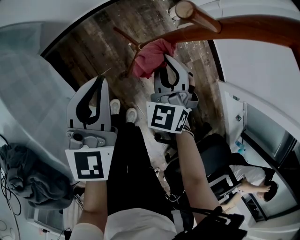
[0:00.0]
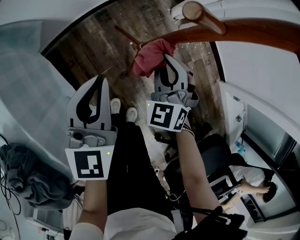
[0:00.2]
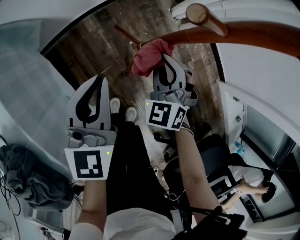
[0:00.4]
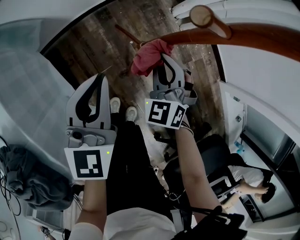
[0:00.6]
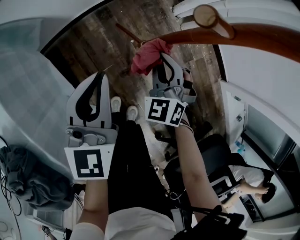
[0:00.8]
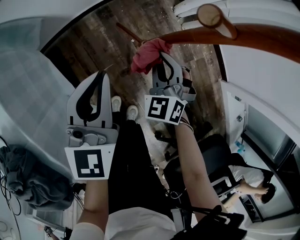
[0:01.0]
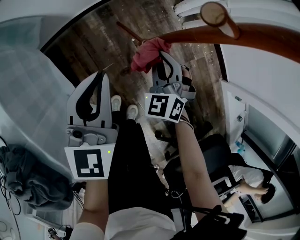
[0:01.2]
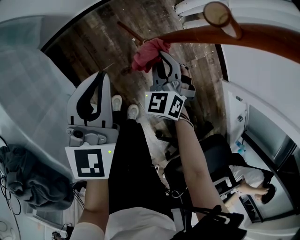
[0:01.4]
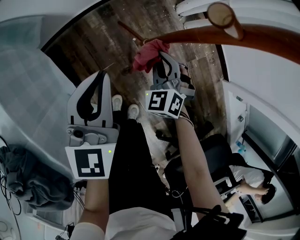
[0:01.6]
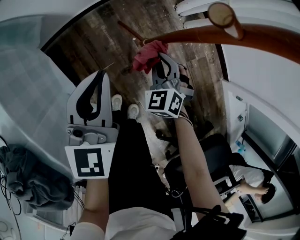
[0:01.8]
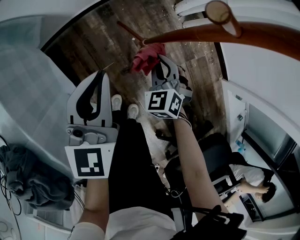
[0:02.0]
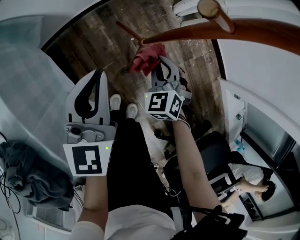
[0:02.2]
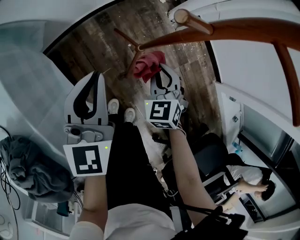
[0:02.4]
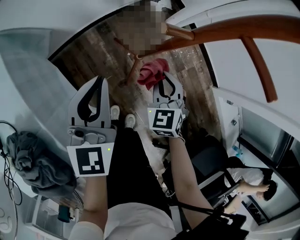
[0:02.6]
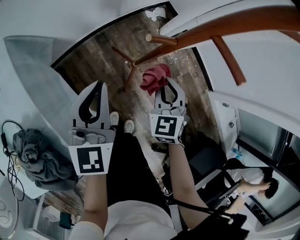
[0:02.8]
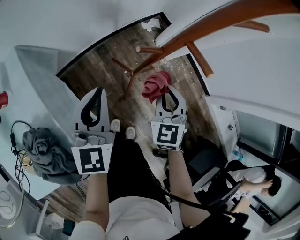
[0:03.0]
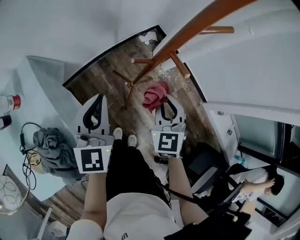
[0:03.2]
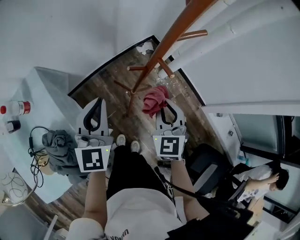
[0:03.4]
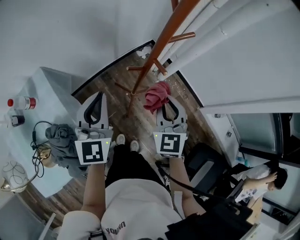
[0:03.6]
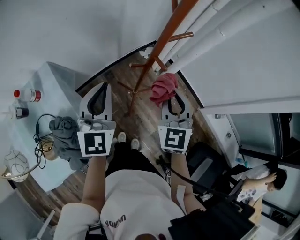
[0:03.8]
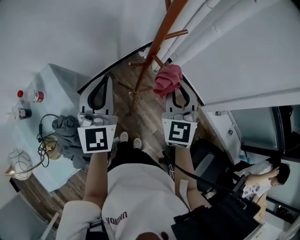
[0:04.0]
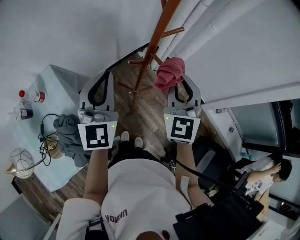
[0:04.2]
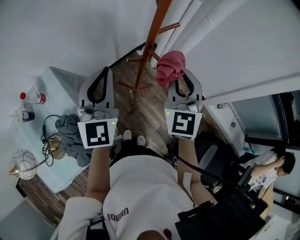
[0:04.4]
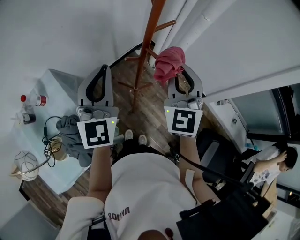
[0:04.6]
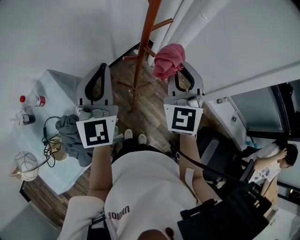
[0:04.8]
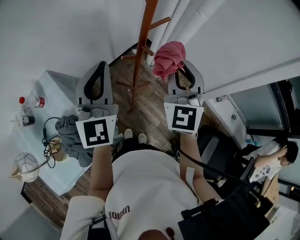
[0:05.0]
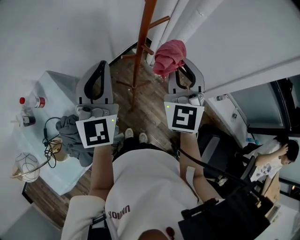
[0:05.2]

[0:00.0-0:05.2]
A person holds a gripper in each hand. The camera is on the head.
0.0 to 1.8 s: The right gripper moves downward, approximately 10 cm.
1.8 to 3.4 s: The left gripper travels upward by roughly 20 cm. Meanwhile the right gripper goes roughly 30 cm upward, and rotates approximately 30 degrees.
3.4 to 5.2 s: Both grippers move upward, about 20 cm. The right gripper turns by about 30 degrees.

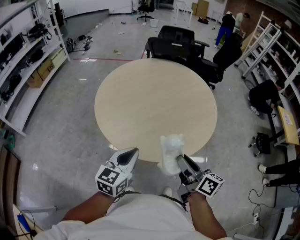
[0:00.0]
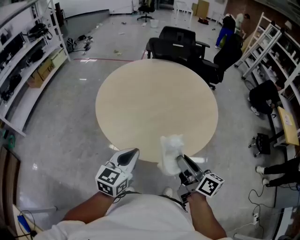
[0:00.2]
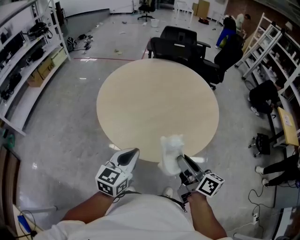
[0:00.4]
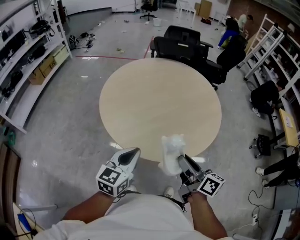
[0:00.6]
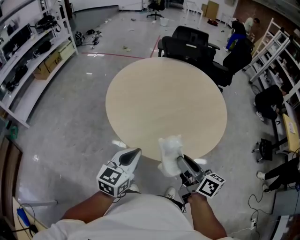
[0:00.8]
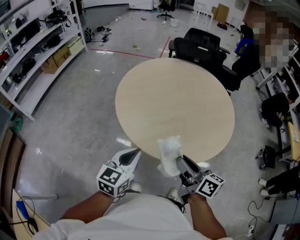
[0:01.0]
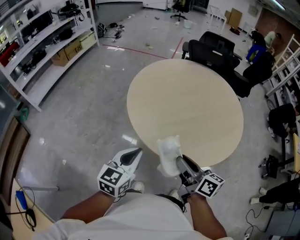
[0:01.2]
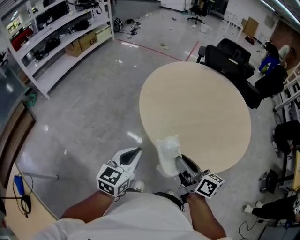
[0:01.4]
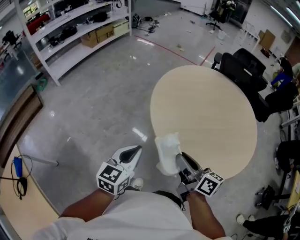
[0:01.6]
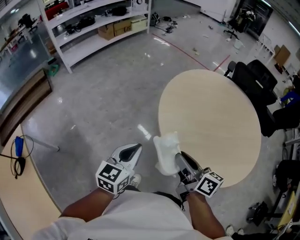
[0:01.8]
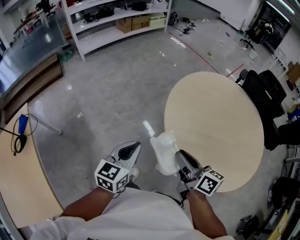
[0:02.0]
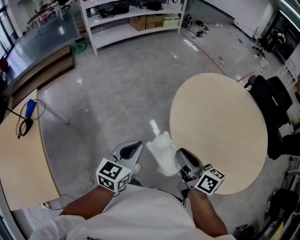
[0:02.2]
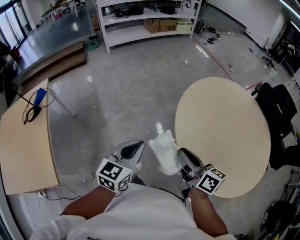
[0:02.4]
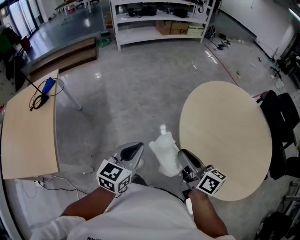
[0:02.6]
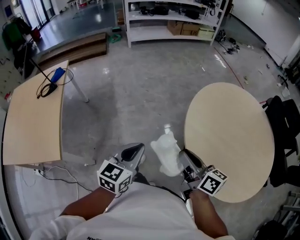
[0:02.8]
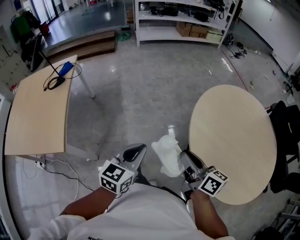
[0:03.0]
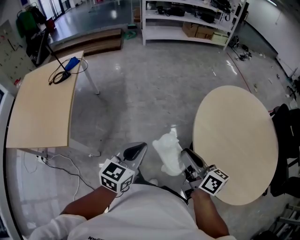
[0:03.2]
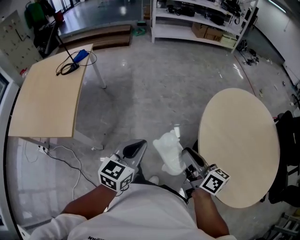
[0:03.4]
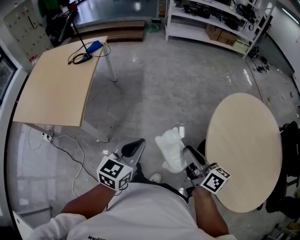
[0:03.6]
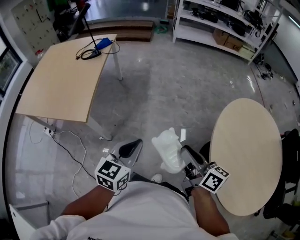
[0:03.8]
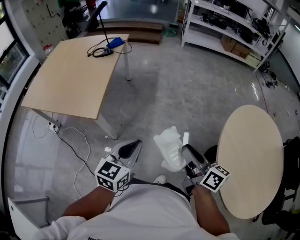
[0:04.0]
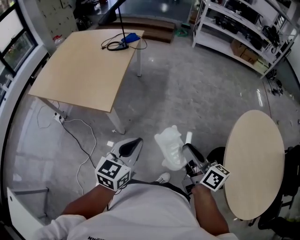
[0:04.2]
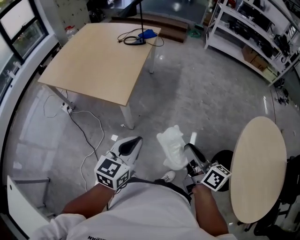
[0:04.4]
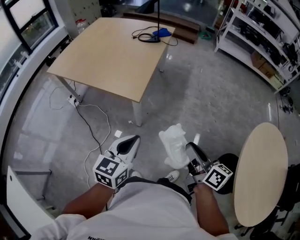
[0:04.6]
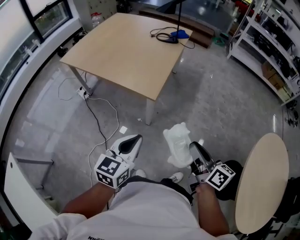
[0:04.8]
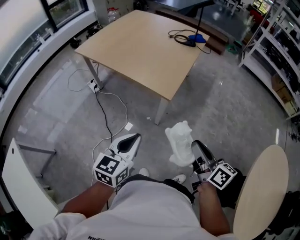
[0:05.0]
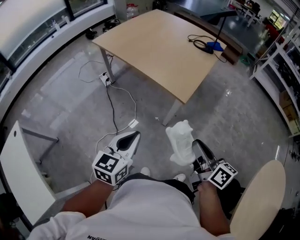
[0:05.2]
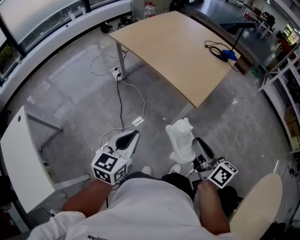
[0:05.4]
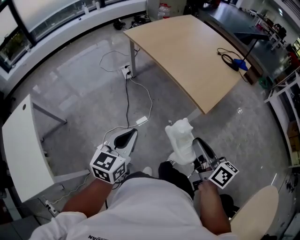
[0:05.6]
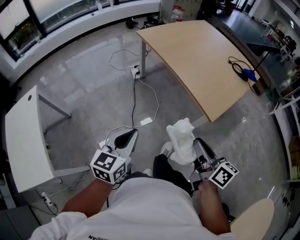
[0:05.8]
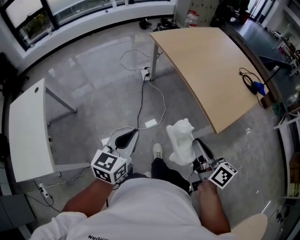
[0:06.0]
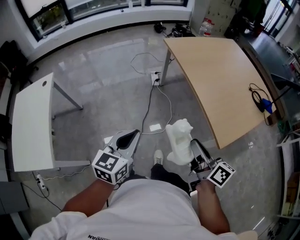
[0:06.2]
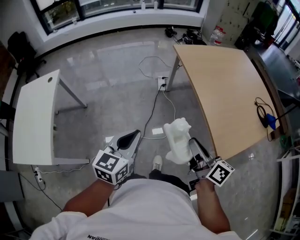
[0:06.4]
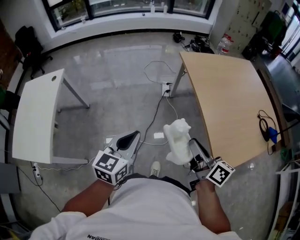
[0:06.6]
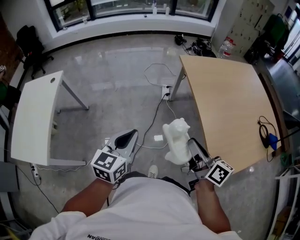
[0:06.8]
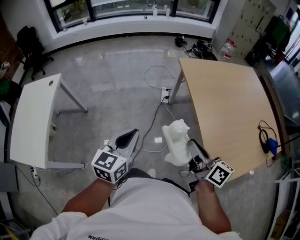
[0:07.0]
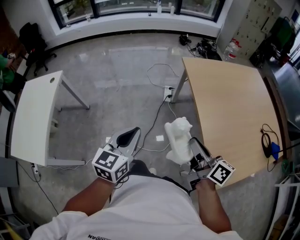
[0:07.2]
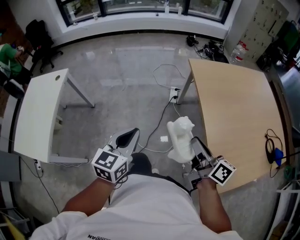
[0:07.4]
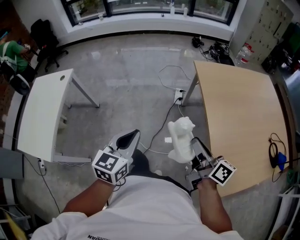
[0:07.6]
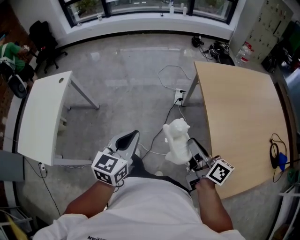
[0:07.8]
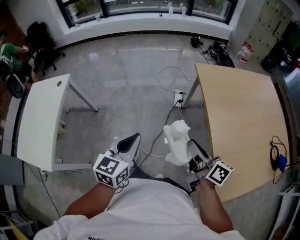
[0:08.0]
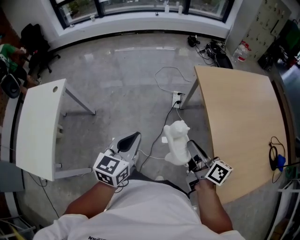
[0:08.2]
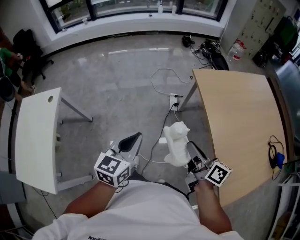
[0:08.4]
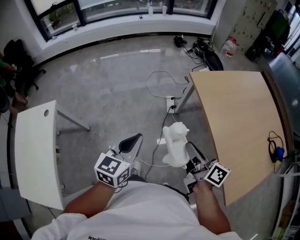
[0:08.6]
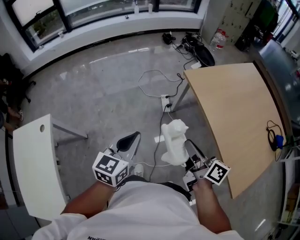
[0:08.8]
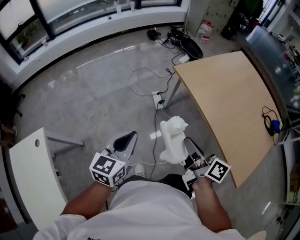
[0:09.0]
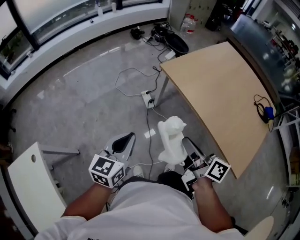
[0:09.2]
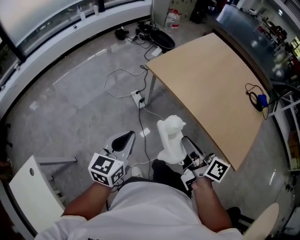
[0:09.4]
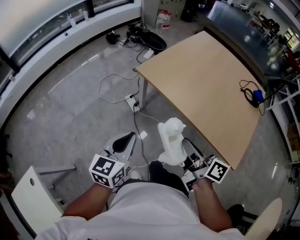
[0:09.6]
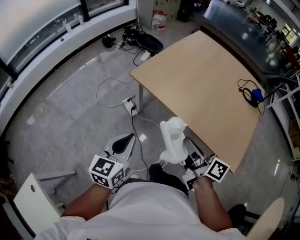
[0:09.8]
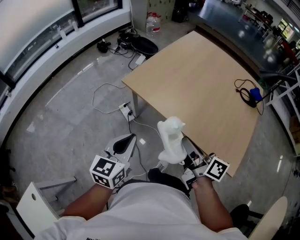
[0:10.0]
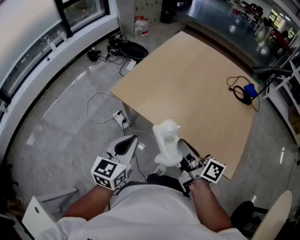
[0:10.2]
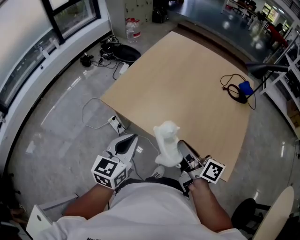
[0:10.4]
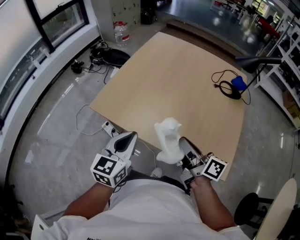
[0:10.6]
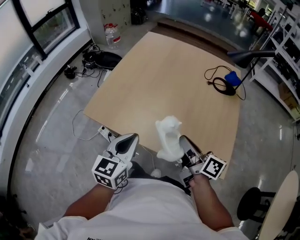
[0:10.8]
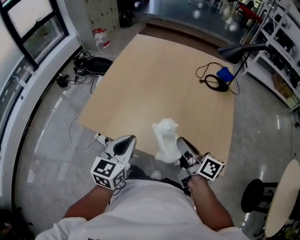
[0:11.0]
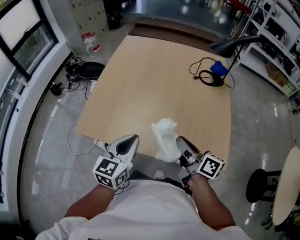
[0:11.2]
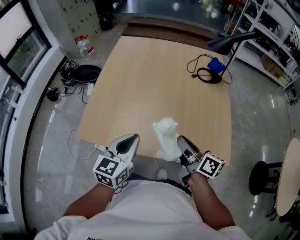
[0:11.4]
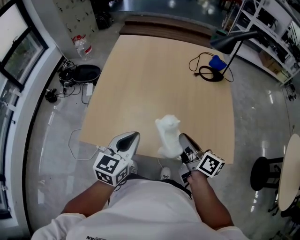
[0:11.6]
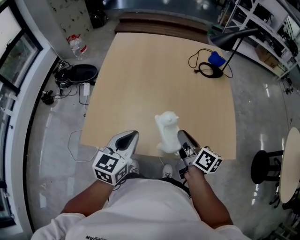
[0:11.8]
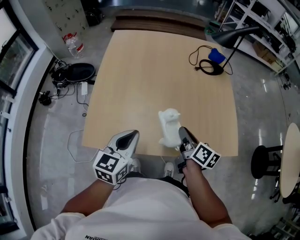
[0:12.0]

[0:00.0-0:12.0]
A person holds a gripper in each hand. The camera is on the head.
0.0 to 1.6 s: The right gripper moves about 20 cm, and turns by approximately 30 degrees. Meanwhile the left gripper shifts by roughly 15 cm, and rotates some 30 degrees.
1.6 to 3.0 s: The right gripper changes place by about 10 cm, and changes its angle by about 40 degrees, while the left gripper changes place by roughly 20 cm, and swivels roughly 40 degrees.
3.0 to 4.4 s: The left gripper moves about 30 cm, and turns by approximately 30 degrees. Meanwhile the right gripper shifts by about 25 cm, and rotates some 30 degrees.
4.4 to 6.0 s: The right gripper ends up some 35 cm from where it was, and turns by approximately 50 degrees, while the left gripper shifts by roughly 35 cm, and rotates some 50 degrees.
6.0 to 7.6 s: The right gripper shifts by some 25 cm, and turns by approximately 30 degrees. Meanwhile the left gripper changes place by approximately 15 cm, and rotates about 20 degrees.
7.6 to 9.0 s: The right gripper goes roughly 15 cm forward and to the left, and turns by some 20 degrees; the left gripper heads forward, covering some 20 cm, and rotates approximately 20 degrees.
9.0 to 10.4 s: The left gripper changes place by some 30 cm, and swivels about 30 degrees; the right gripper ends up about 25 cm from where it was, and swivels approximately 30 degrees.
10.4 to 12.0 s: The left gripper moves some 15 cm, and rotates roughly 30 degrees, while the right gripper changes place by some 15 cm, and changes its angle by about 40 degrees.

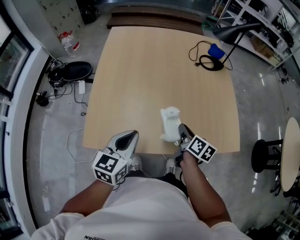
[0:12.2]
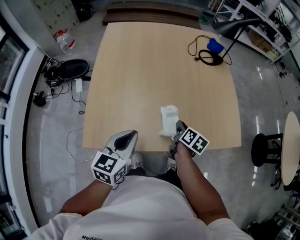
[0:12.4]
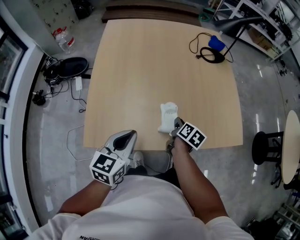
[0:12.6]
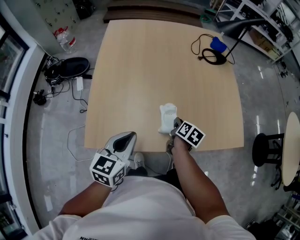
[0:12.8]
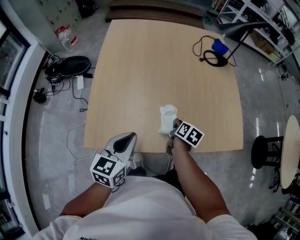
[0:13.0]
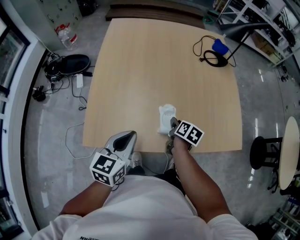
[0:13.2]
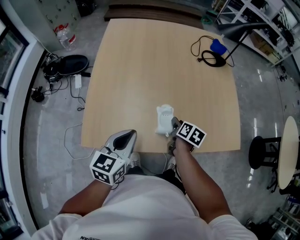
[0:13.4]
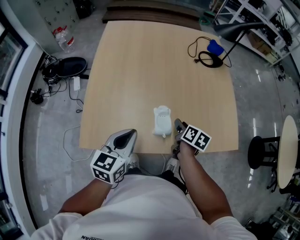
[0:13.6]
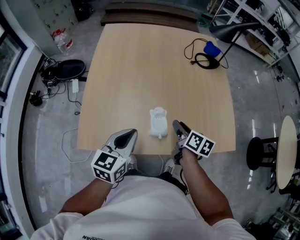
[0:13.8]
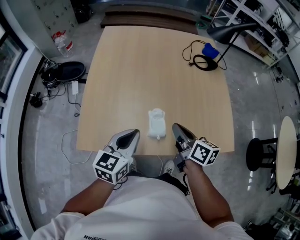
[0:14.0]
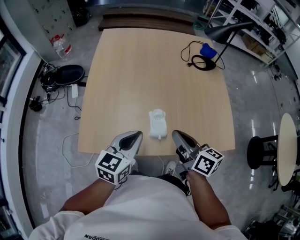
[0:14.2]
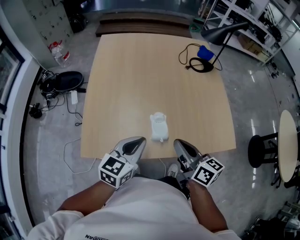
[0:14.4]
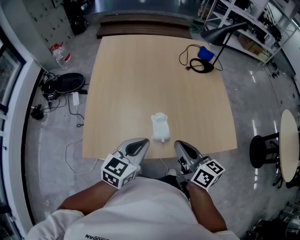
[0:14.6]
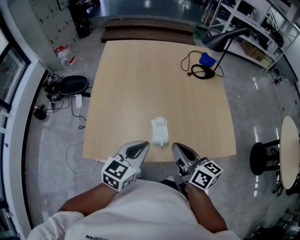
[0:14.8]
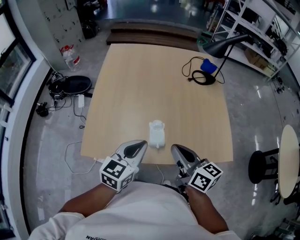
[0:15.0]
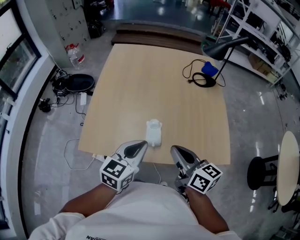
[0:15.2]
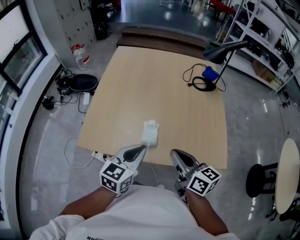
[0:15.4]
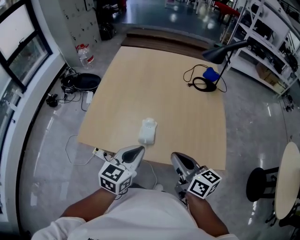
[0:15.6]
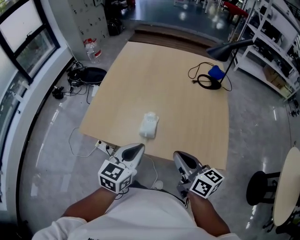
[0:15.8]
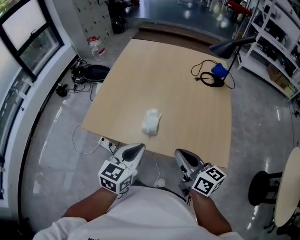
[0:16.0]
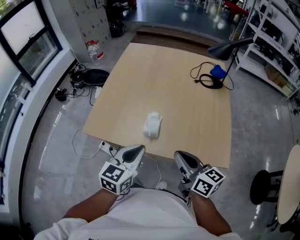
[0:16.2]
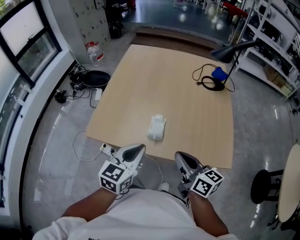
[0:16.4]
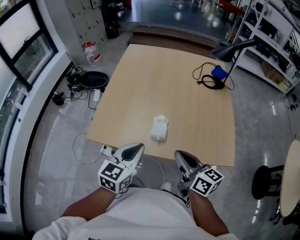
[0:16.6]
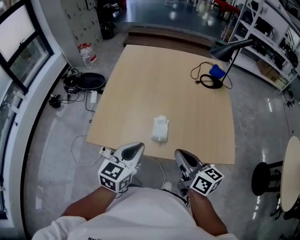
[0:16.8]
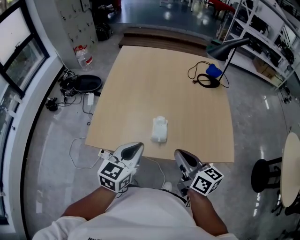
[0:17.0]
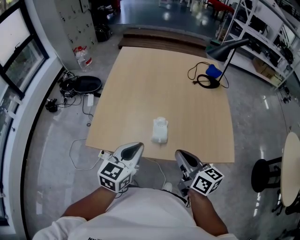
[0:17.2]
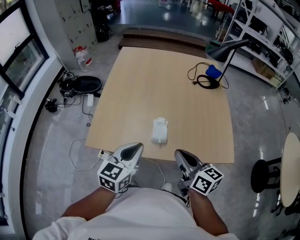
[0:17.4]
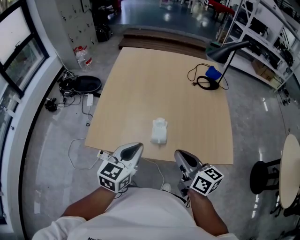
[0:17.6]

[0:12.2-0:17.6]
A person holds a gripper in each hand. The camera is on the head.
12.2 to 13.6 s: The right gripper opens.
13.6 to 15.0 s: The right gripper heads upward and backward, covering approximately 20 cm, points its fingers about 30 degrees further upward, and closes up, while the left gripper shifts roughly 5 cm to the right.
15.0 to 16.2 s: The right gripper is displaced backward and to the right by roughly 10 cm; the left gripper travels backward by about 10 cm.
16.2 to 17.6 s: The two grippers go about 5 cm to the left.

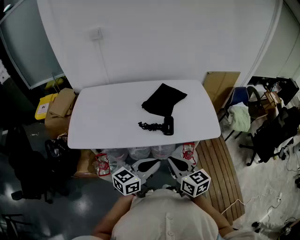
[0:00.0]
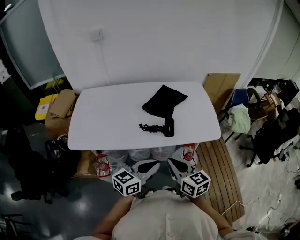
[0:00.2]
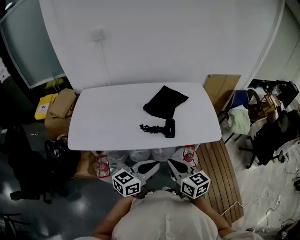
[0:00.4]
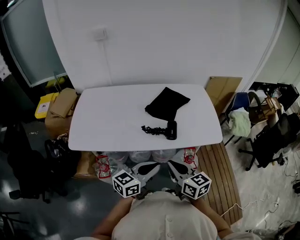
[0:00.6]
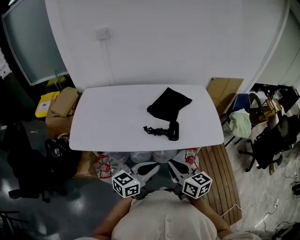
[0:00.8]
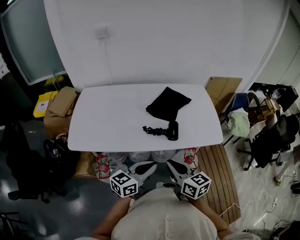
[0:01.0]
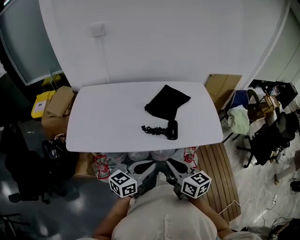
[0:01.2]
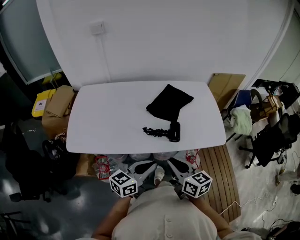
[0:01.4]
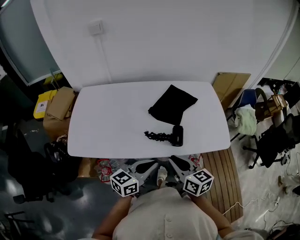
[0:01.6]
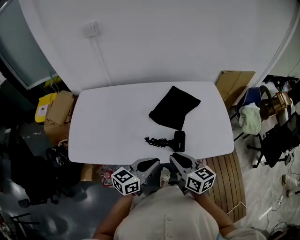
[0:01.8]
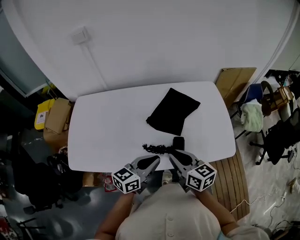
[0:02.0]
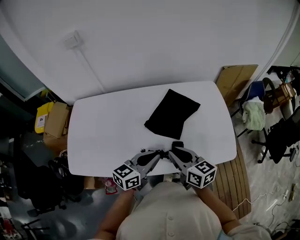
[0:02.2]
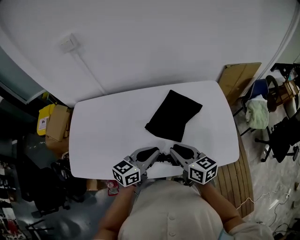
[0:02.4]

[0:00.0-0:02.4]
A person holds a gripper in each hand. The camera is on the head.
0.0 to 1.2 s: The left gripper goes roughly 5 cm to the left.
1.2 to 2.4 s: The two grippers go about 25 cm forward.
